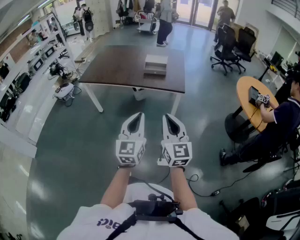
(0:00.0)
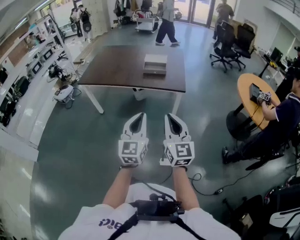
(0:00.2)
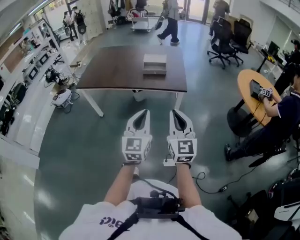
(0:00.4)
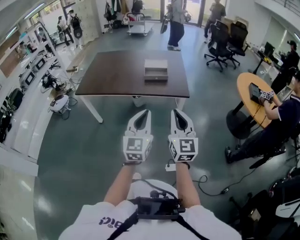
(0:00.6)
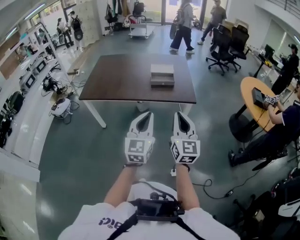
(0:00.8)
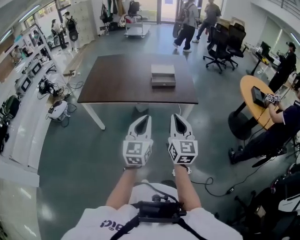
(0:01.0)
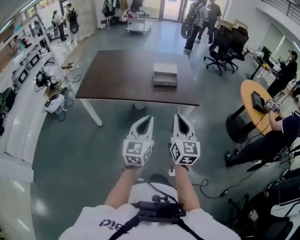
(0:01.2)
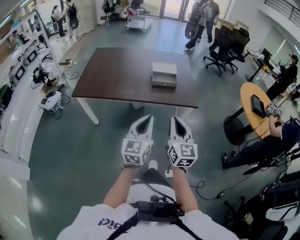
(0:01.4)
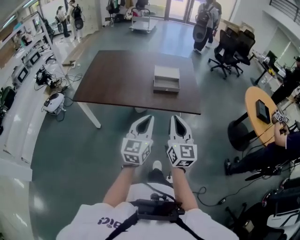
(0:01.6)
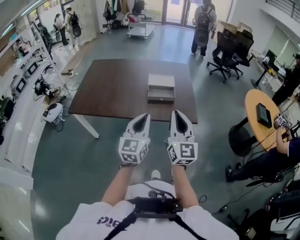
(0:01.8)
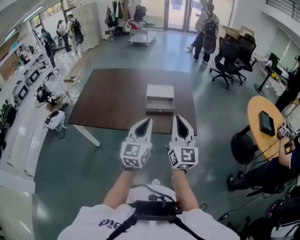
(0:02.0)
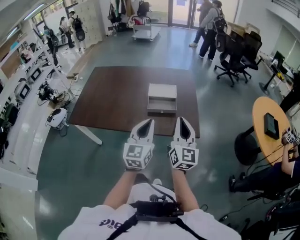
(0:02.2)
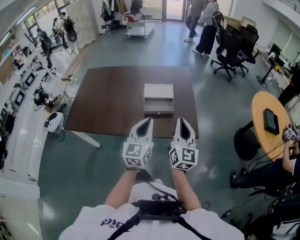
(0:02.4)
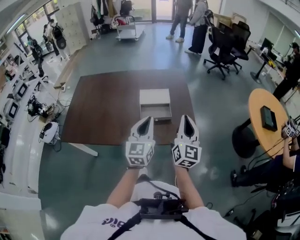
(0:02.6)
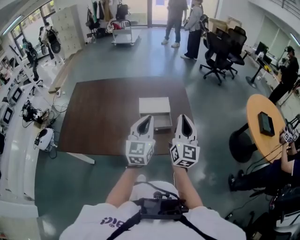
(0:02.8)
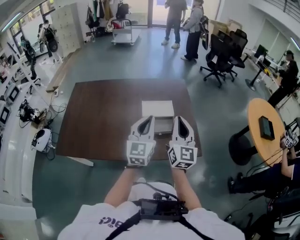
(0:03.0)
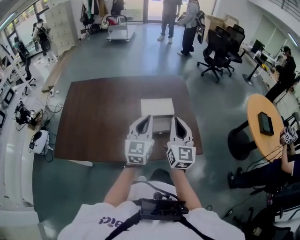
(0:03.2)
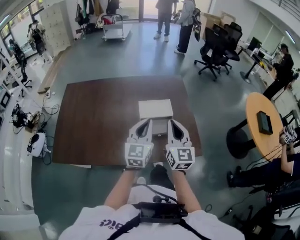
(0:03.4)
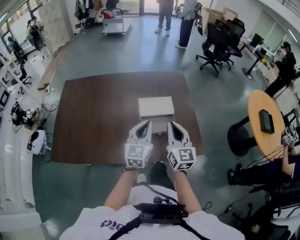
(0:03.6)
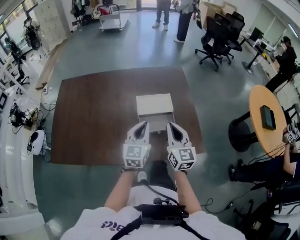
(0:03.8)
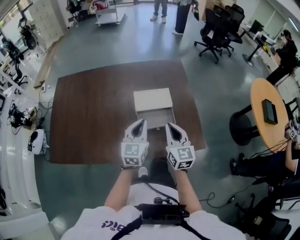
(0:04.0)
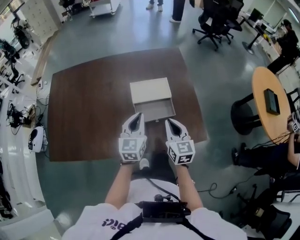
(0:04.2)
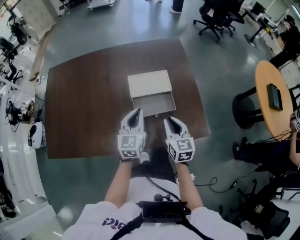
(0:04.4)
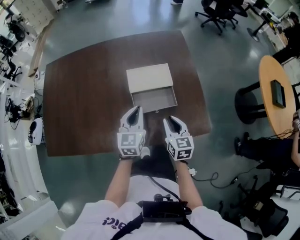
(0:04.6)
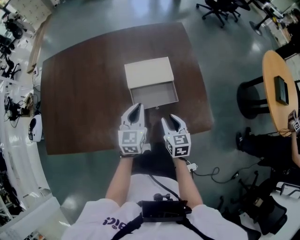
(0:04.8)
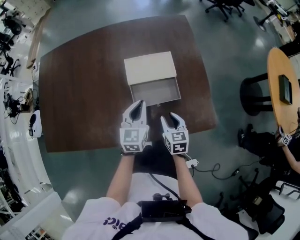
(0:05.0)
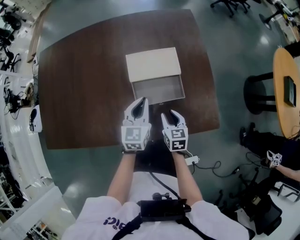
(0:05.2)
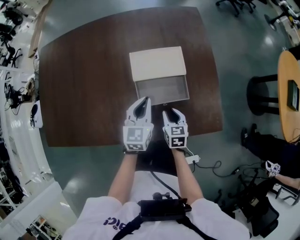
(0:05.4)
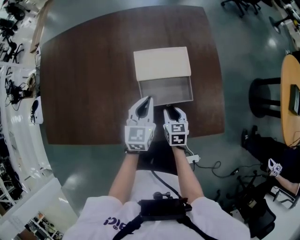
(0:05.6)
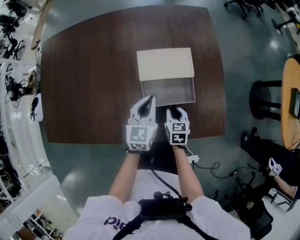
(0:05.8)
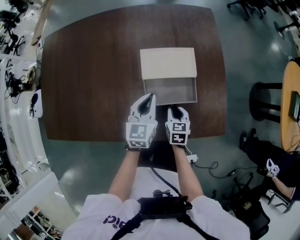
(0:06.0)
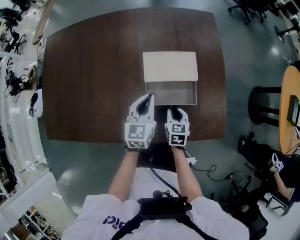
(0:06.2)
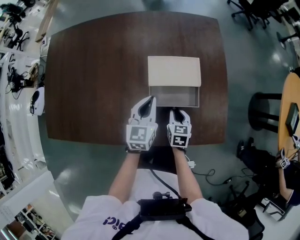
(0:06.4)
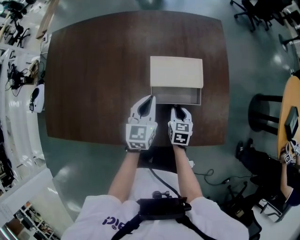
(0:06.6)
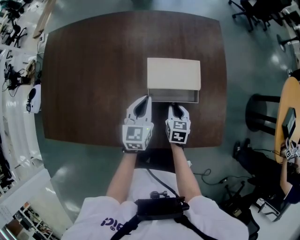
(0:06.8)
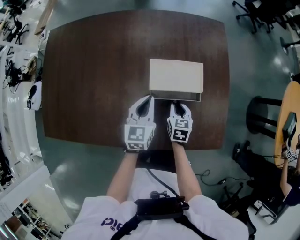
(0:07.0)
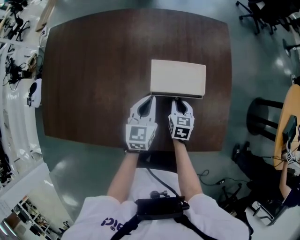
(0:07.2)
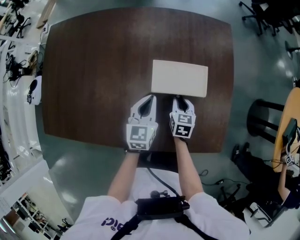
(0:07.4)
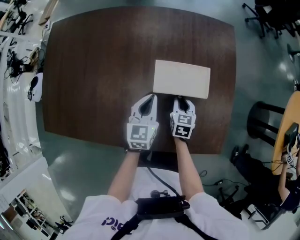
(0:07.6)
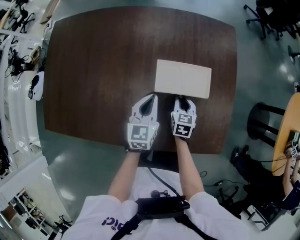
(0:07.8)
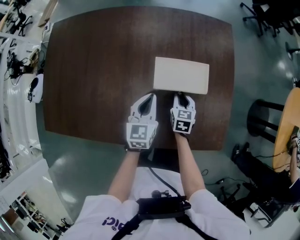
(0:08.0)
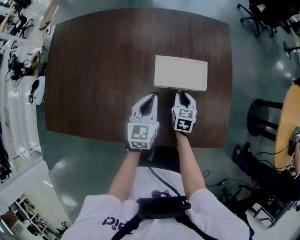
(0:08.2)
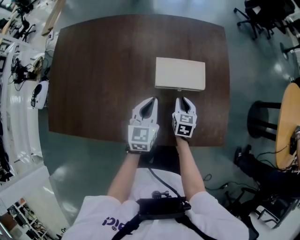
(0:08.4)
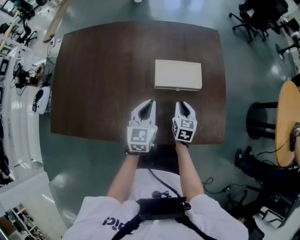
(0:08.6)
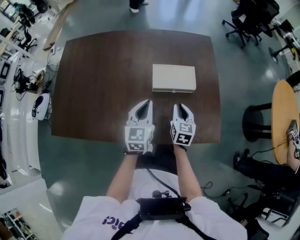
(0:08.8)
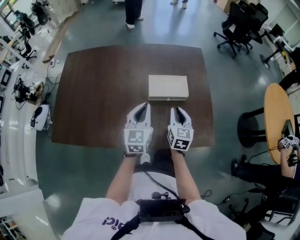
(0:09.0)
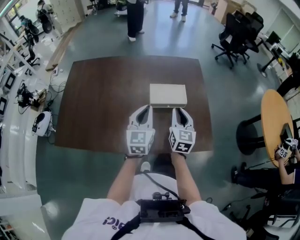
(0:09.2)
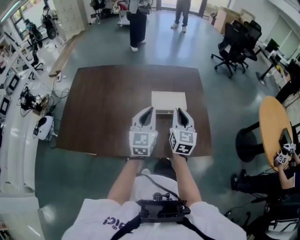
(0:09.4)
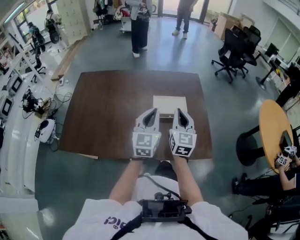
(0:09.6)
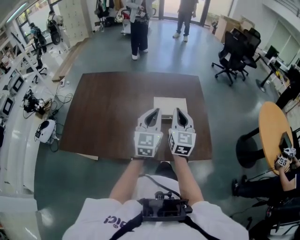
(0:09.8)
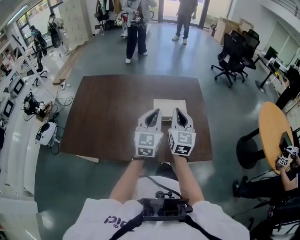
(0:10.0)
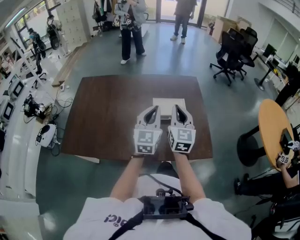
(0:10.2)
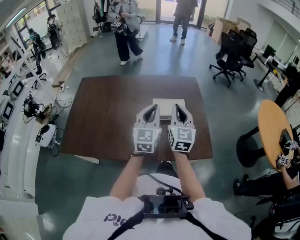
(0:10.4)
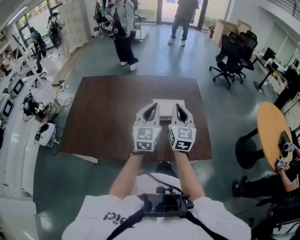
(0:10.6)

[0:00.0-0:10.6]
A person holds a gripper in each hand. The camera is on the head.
0:00.0 to 0:01.6: The two grippers go some 30 cm forward and to the left.
0:01.6 to 0:03.0: The grippers both shift forward by approximately 40 cm.
0:03.0 to 0:04.6: The right gripper is displaced downward by about 30 cm, and points its fingers some 40 degrees further downward; the left gripper heads downward and forward, covering some 25 cm, and rotates about 20 degrees.
0:04.6 to 0:06.0: The right gripper travels downward and forward by about 15 cm, while the left gripper is displaced downward and forward by about 10 cm.
0:06.0 to 0:07.6: The right gripper travels forward by approximately 10 cm; the left gripper goes roughly 5 cm forward.
0:07.6 to 0:09.0: The two grippers go approximately 20 cm upward and backward. The right gripper changes its angle by some 20 degrees.
0:09.0 to 0:10.6: Both grippers move upward, roughly 15 cm. The right gripper changes its angle by some 20 degrees.

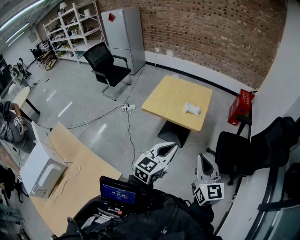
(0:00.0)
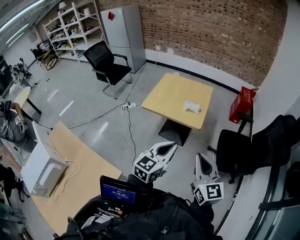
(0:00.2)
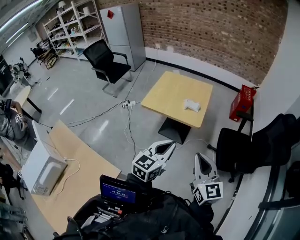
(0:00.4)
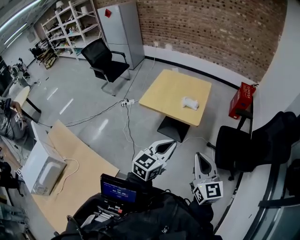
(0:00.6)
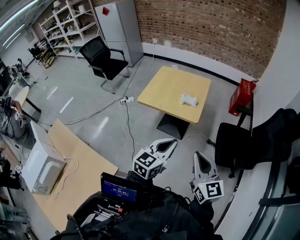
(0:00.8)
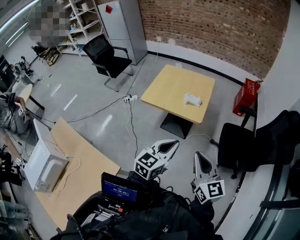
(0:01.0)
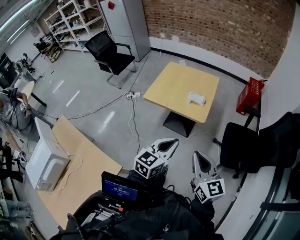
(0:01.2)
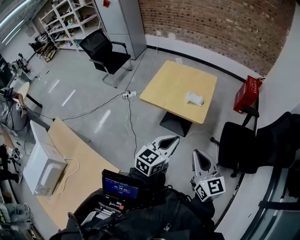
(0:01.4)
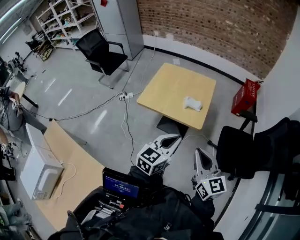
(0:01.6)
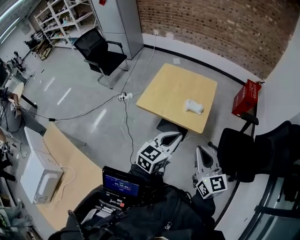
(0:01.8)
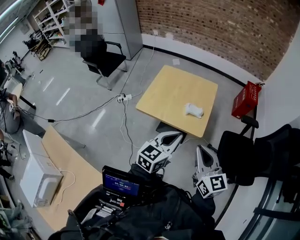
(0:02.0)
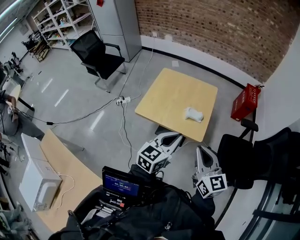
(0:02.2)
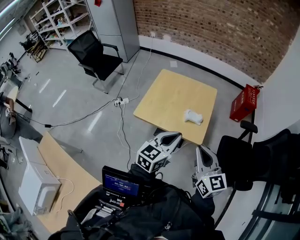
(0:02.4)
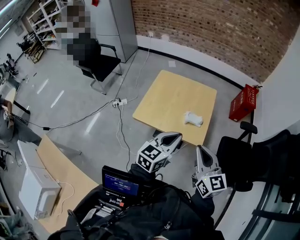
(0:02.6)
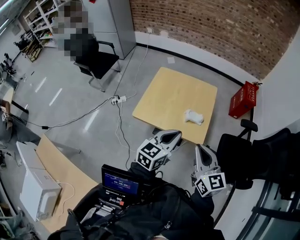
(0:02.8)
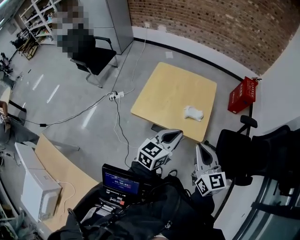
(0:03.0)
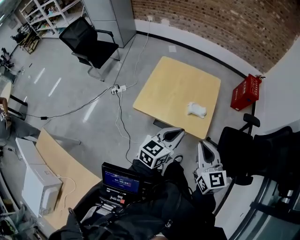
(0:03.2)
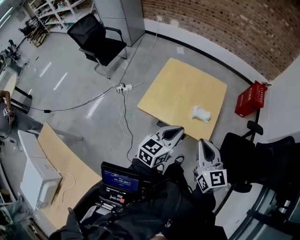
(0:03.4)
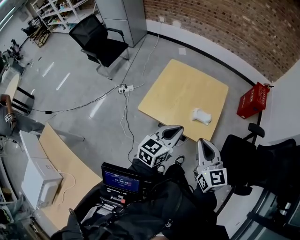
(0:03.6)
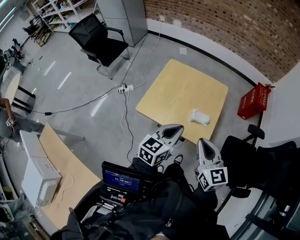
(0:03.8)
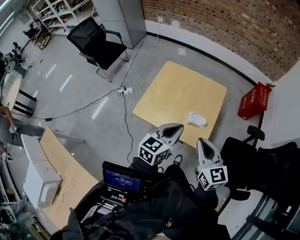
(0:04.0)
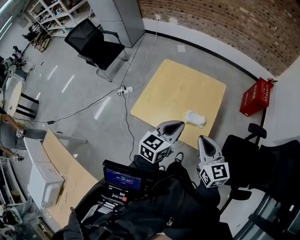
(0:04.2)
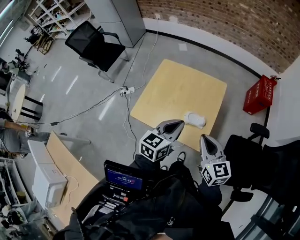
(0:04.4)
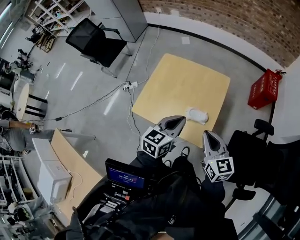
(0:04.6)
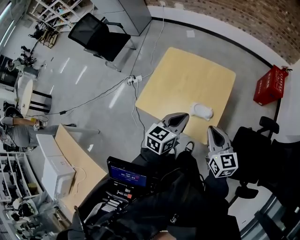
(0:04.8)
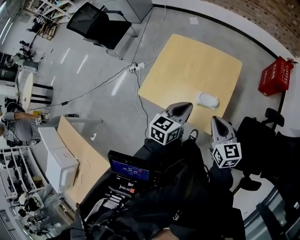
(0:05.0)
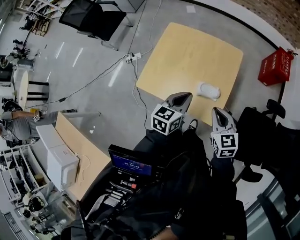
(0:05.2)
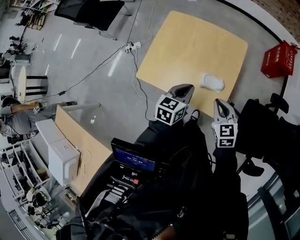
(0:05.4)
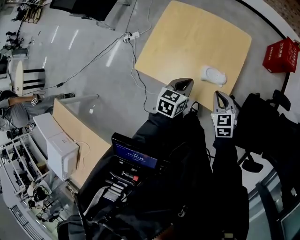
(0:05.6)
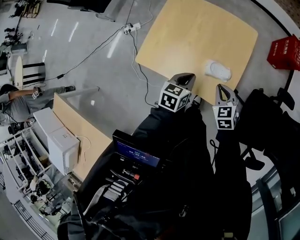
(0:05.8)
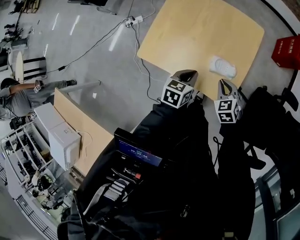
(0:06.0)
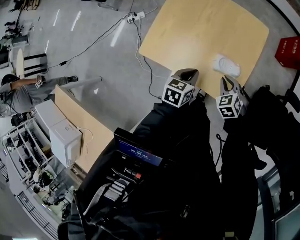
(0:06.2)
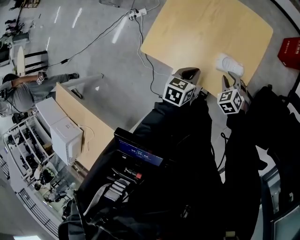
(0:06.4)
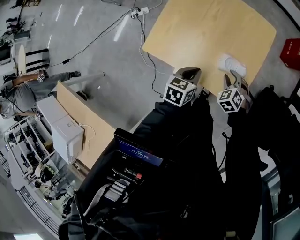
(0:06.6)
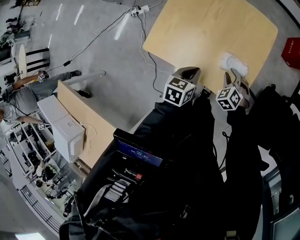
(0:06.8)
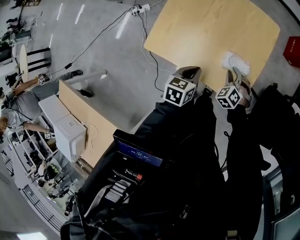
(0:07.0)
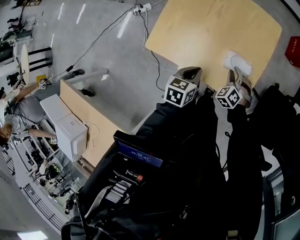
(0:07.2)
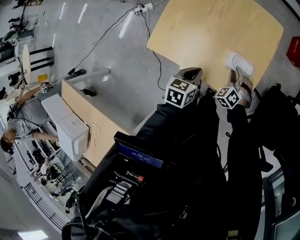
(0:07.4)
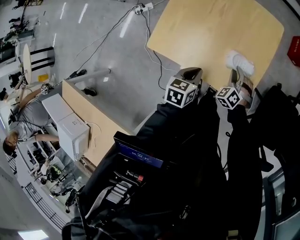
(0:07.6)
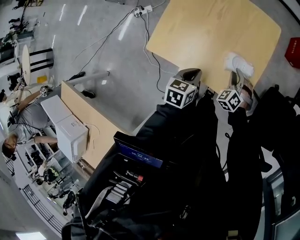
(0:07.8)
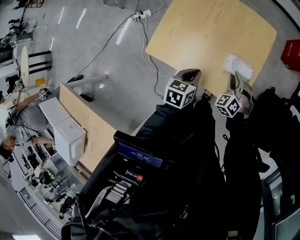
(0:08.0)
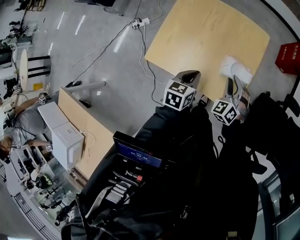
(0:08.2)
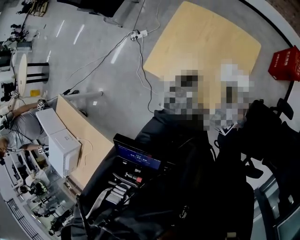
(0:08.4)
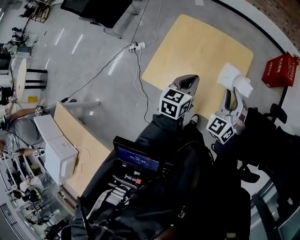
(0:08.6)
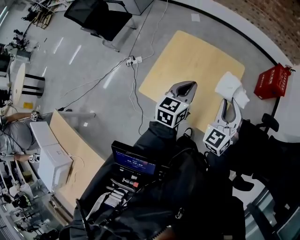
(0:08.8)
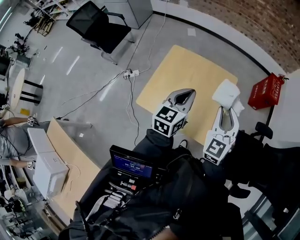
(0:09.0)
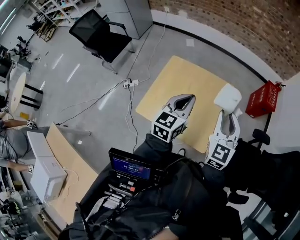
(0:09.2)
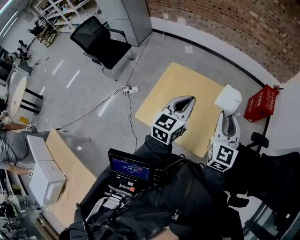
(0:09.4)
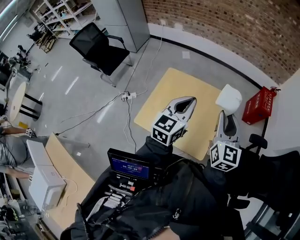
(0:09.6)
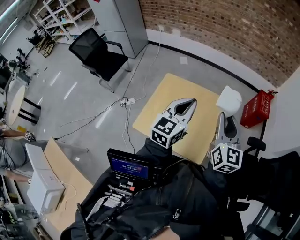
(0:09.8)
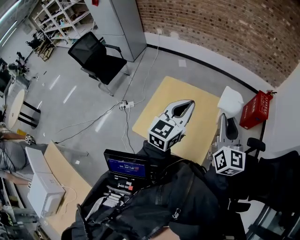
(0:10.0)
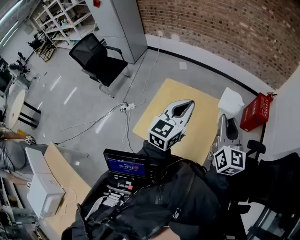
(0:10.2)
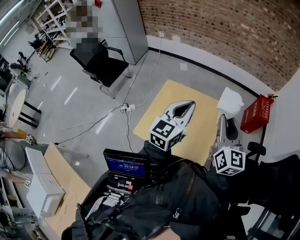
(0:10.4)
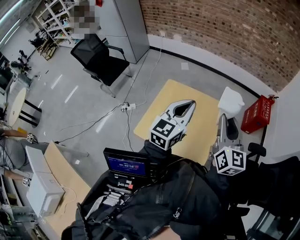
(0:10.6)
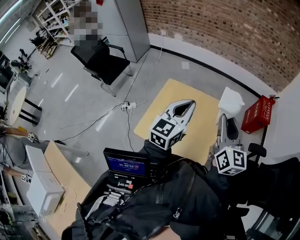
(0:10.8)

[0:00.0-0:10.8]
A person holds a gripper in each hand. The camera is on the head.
0:00.0 to 0:01.6: Both grippers travel together forward, roughly 10 cm.
0:01.6 to 0:03.0: Both grippers travel together forward and to the left, approximately 15 cm.
0:03.0 to 0:04.6: The right gripper heads forward, to the right and downward, covering some 20 cm, while the left gripper goes roughly 15 cm forward.
0:04.6 to 0:06.2: The grippers both shift downward by approximately 25 cm. The left gripper turns by approximately 20 degrees. Meanwhile the right gripper angles its fingers downward, by roughly 40 degrees.
0:06.2 to 0:07.8: The right gripper heads downward, covering roughly 5 cm, and swivels about 20 degrees.
0:07.8 to 0:09.2: Both grippers travel together upward, about 35 cm. The right gripper angles its fingers upward, by approximately 40 degrees. Meanwhile the left gripper angles its fingers upward, by about 30 degrees.
0:09.2 to 0:10.8: Both grippers travel together upward, about 10 cm. The right gripper turns by some 30 degrees.

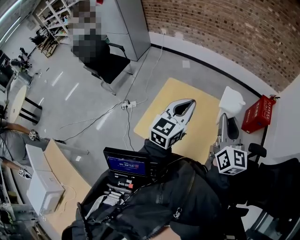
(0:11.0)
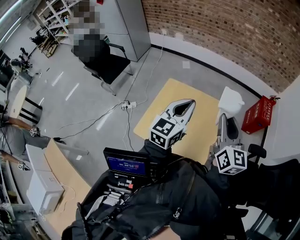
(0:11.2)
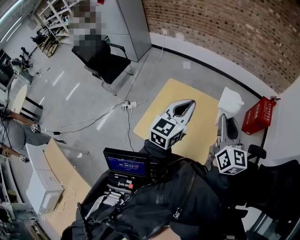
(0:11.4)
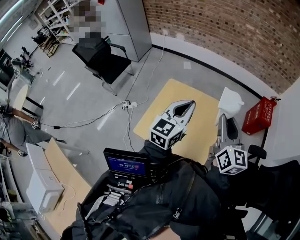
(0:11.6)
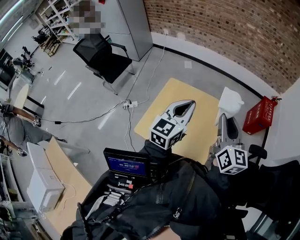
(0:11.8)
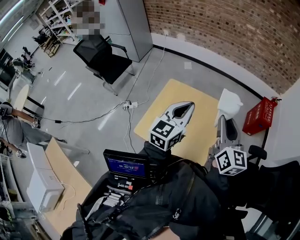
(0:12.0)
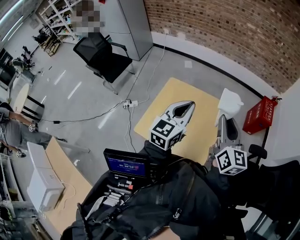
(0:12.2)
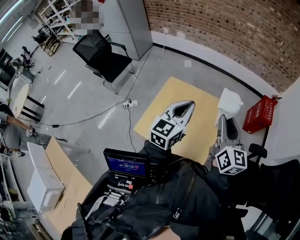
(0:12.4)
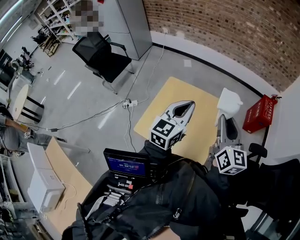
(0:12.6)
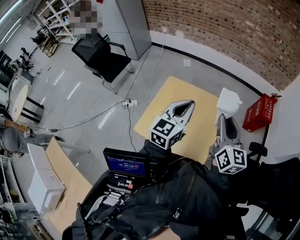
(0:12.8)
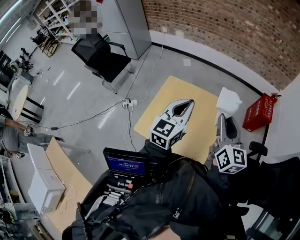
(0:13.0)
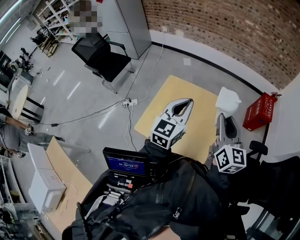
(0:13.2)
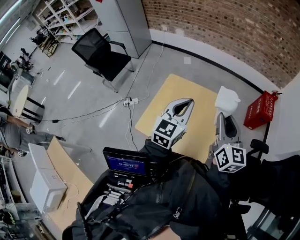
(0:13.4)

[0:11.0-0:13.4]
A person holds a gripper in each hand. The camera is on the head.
0:11.0 to 0:12.2: Neither gripper changes place.
0:12.2 to 0:13.4: The grippers move only a little.
